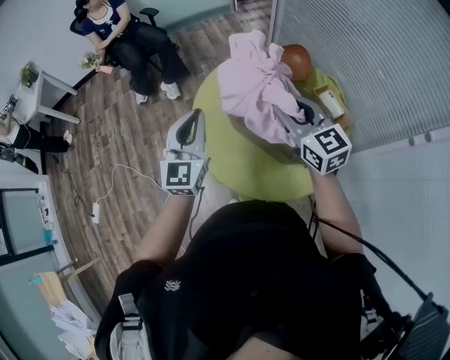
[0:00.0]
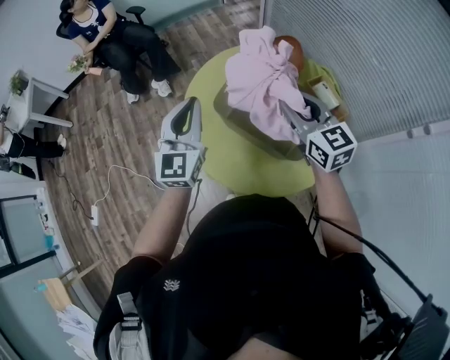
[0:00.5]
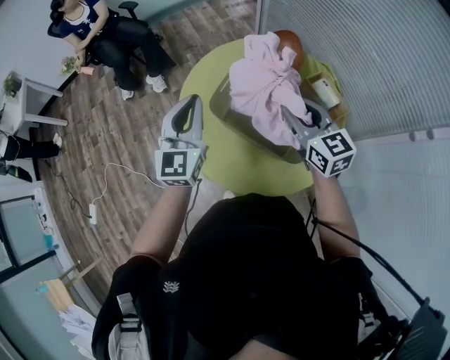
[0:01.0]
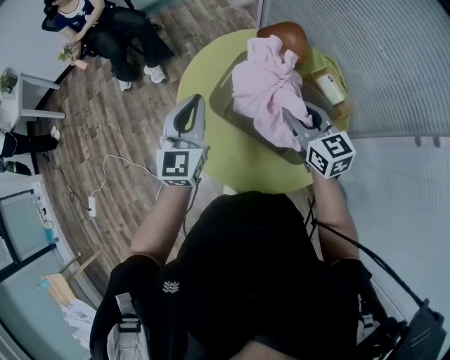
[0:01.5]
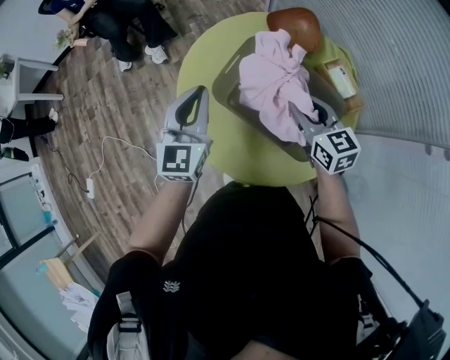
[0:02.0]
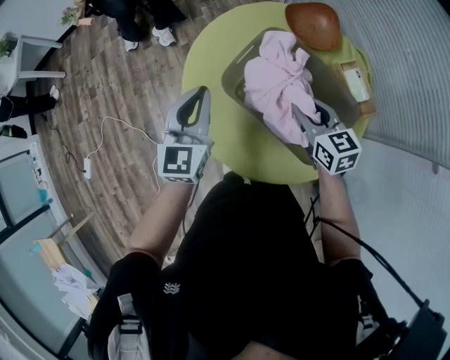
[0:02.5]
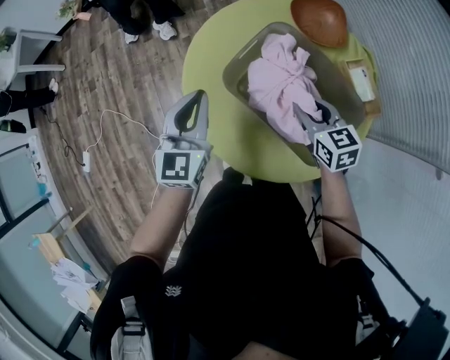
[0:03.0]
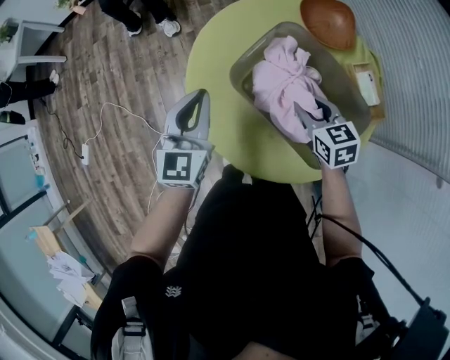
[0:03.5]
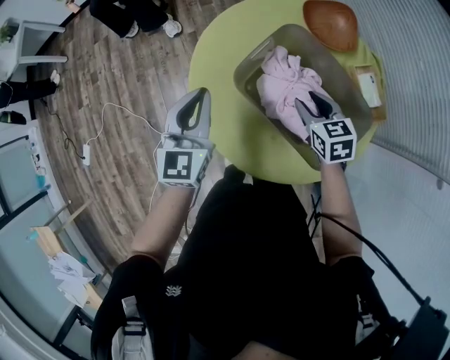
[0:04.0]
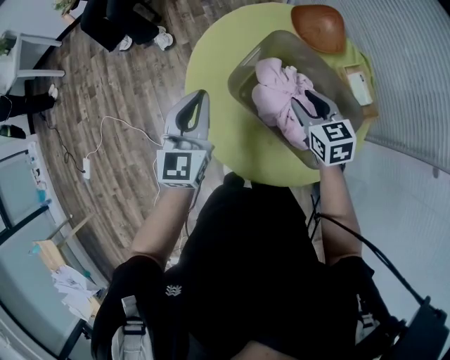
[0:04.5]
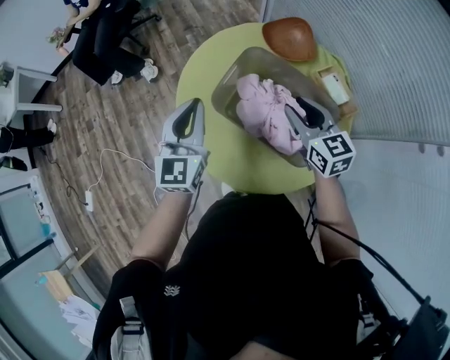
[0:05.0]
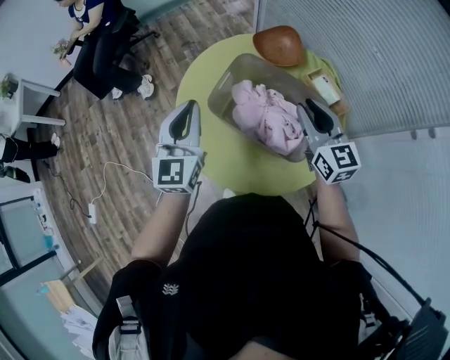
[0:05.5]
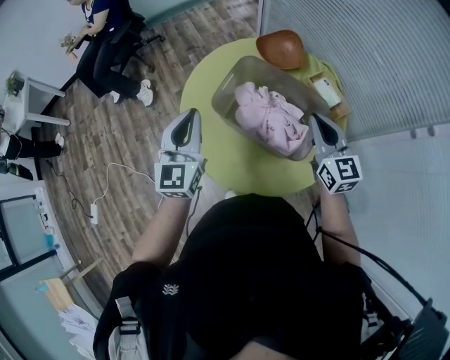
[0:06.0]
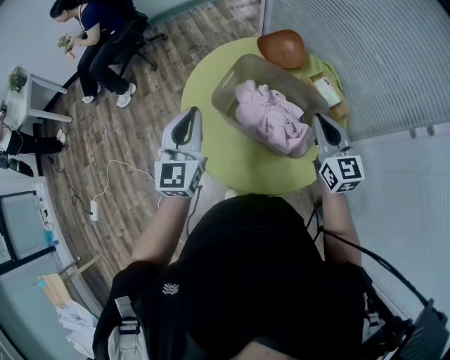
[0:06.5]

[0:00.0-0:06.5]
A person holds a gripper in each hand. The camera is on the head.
0:00.0 to 0:02.0: The left gripper is displaced forward, downward and to the right by about 15 cm. Meanwhile the right gripper is displaced downward and to the right by some 15 cm.
0:02.0 to 0:04.5: The left gripper shifts by some 5 cm; the right gripper shifts approximately 5 cm downward.
0:04.5 to 0:06.5: The right gripper moves upward, backward and to the right, approximately 20 cm, swivels about 30 degrees, and closes up. Meanwhile the left gripper shifts approximately 10 cm upward and backward.

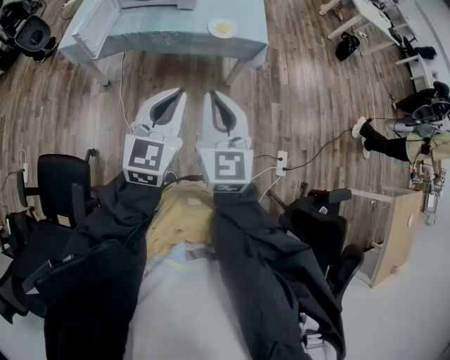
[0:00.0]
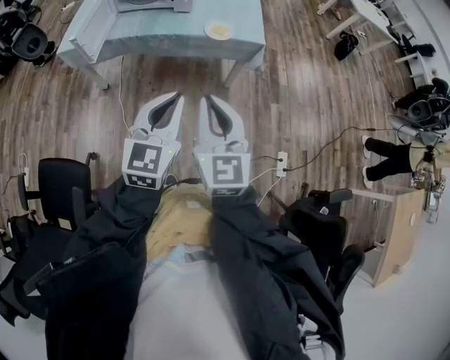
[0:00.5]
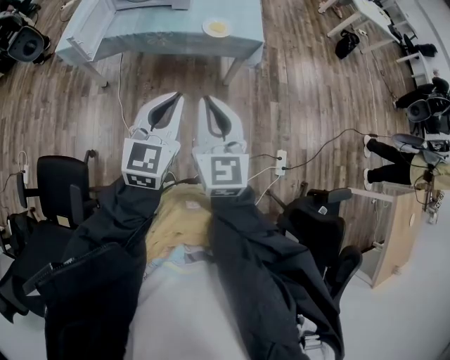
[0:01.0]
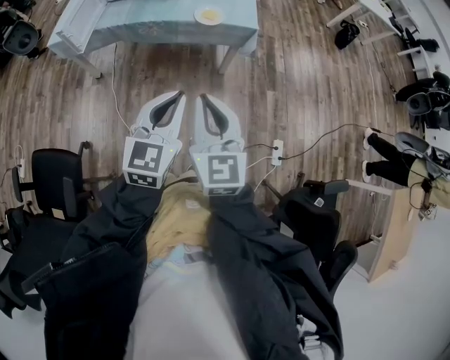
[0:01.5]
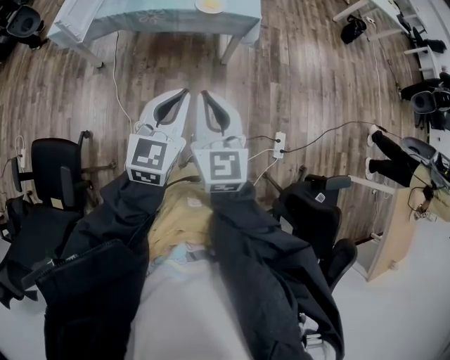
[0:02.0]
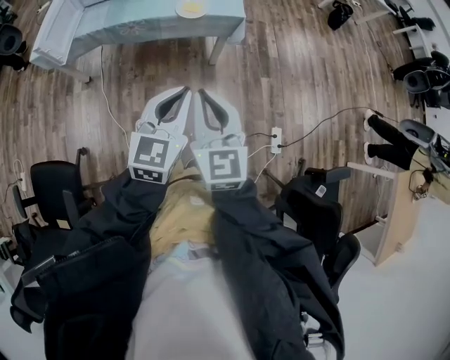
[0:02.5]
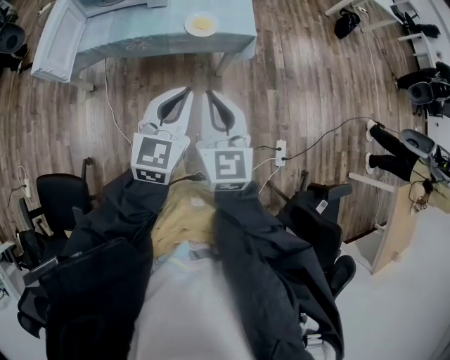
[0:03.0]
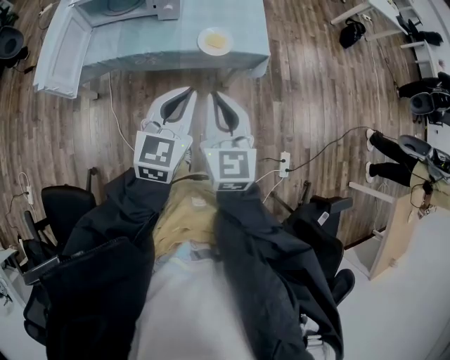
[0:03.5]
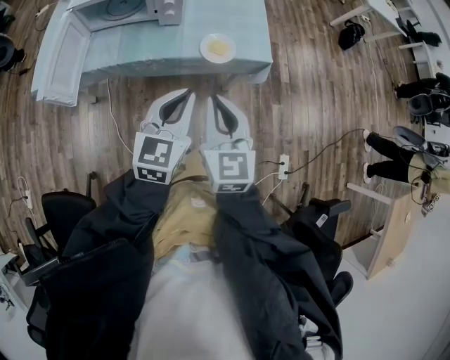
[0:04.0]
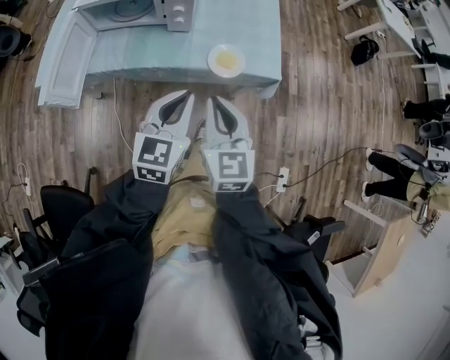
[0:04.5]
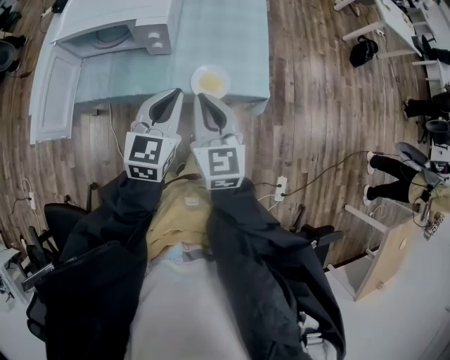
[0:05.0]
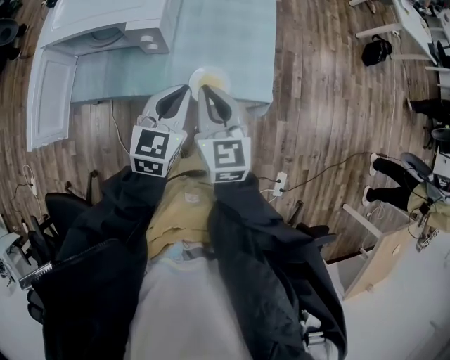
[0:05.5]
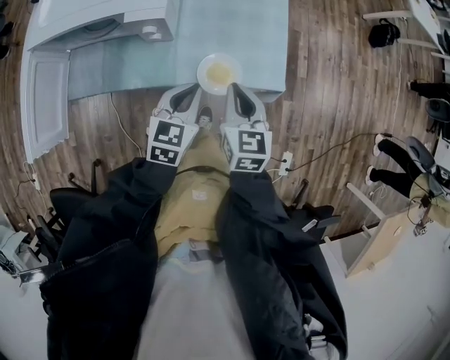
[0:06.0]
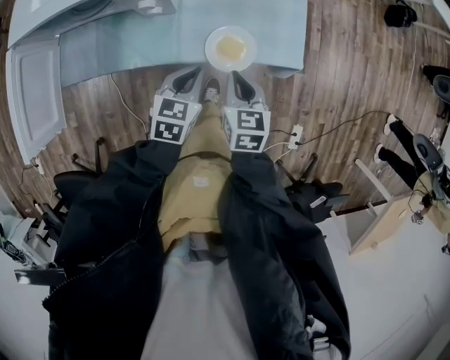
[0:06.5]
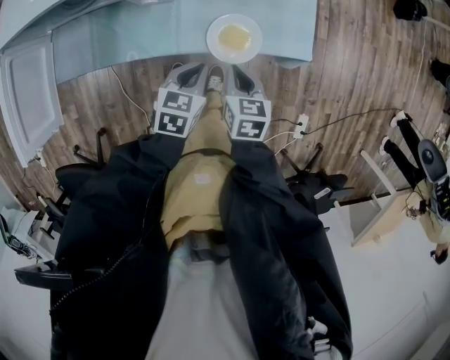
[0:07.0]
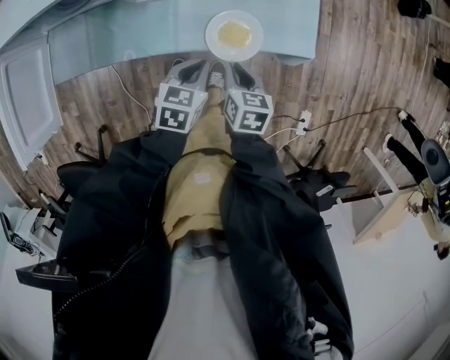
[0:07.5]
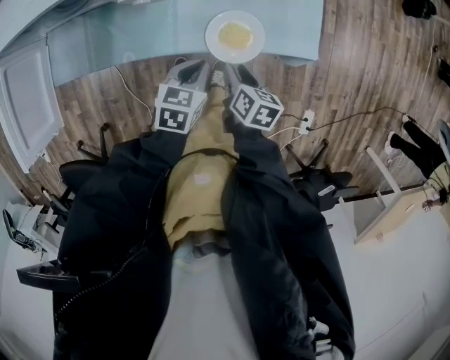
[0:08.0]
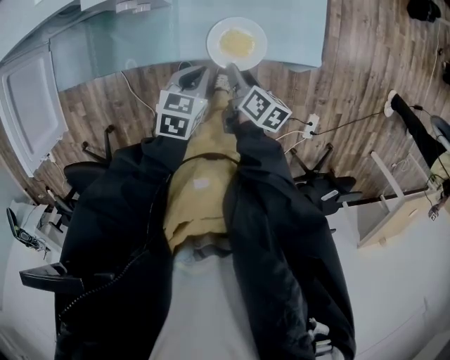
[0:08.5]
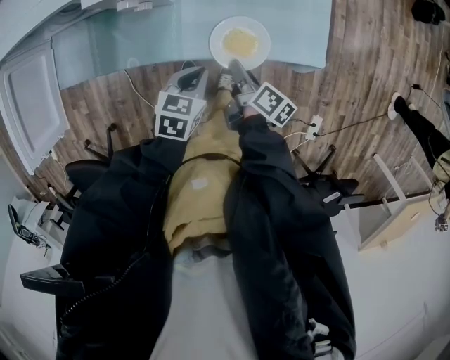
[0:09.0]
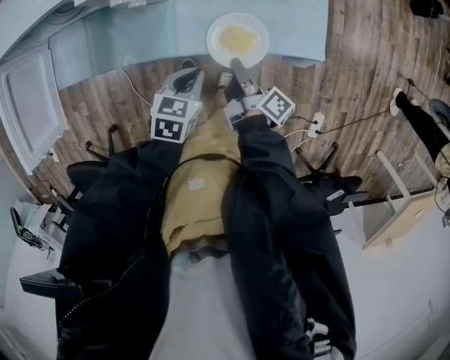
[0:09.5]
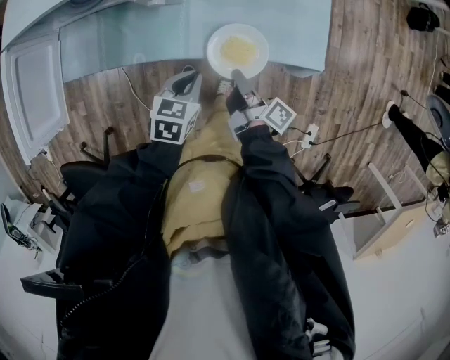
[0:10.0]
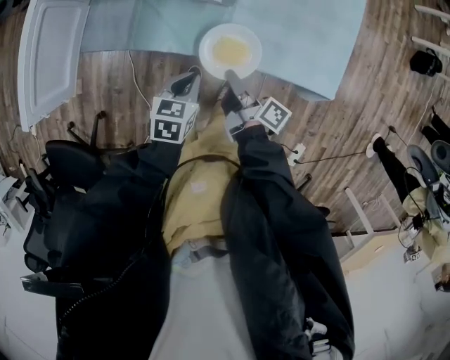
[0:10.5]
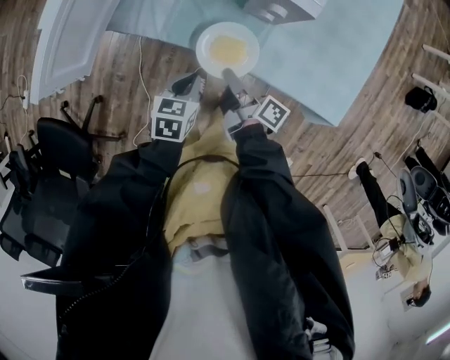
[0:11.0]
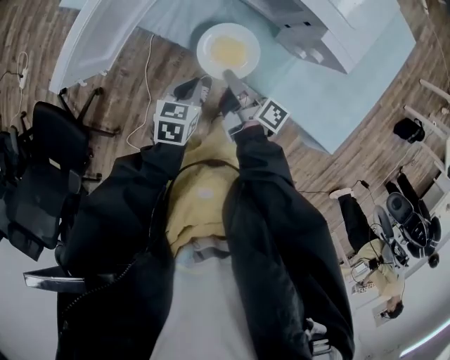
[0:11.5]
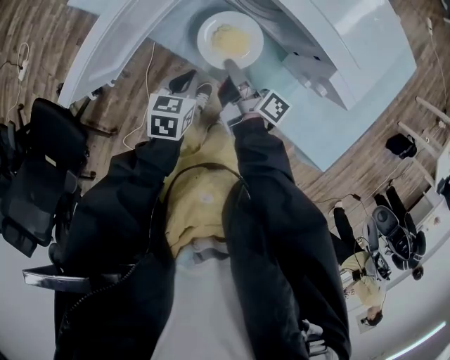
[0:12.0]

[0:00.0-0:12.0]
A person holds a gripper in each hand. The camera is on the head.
0:00.0 to 0:02.0: The two grippers go roughly 10 cm to the right and downward.
0:02.0 to 0:04.0: The left gripper moves forward and to the left, about 30 cm. The right gripper moves forward, about 25 cm.
0:04.0 to 0:06.0: The two grippers go approximately 25 cm forward and downward.
0:06.0 to 0:08.0: Both grippers move downward, approximately 20 cm. The right gripper rotates some 40 degrees, and opens. The left gripper turns by some 20 degrees.
0:08.0 to 0:10.0: The right gripper tips its fingers upward by approximately 30 degrees, and closes.
0:10.0 to 0:12.0: The right gripper moves about 35 cm, and changes its angle by about 40 degrees; the left gripper shifts by about 30 cm, and rotates roughly 40 degrees.

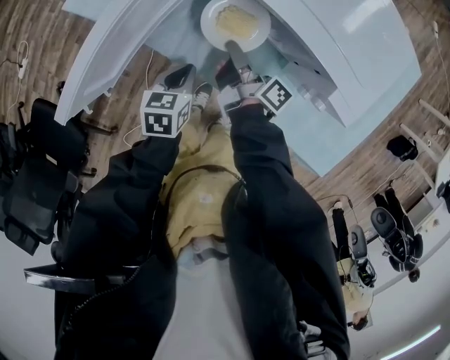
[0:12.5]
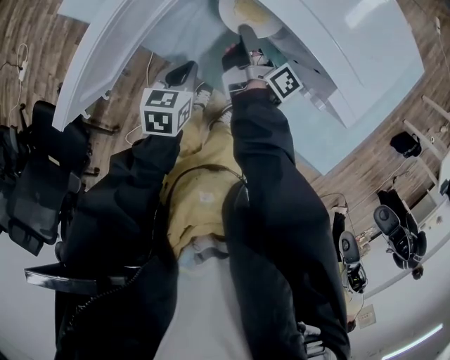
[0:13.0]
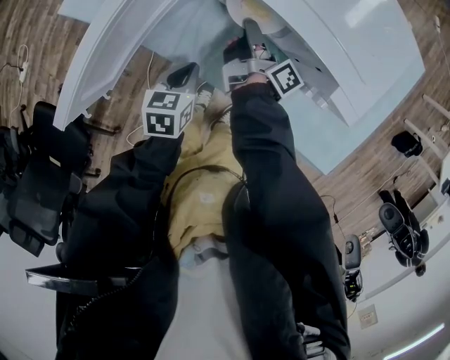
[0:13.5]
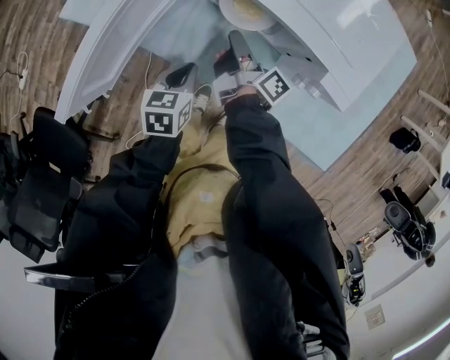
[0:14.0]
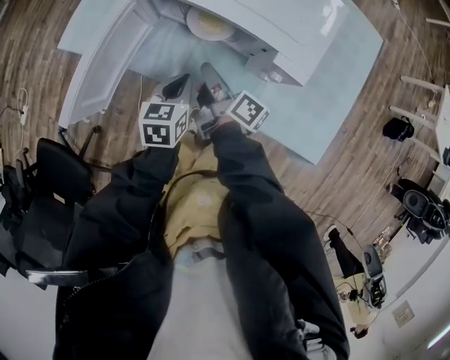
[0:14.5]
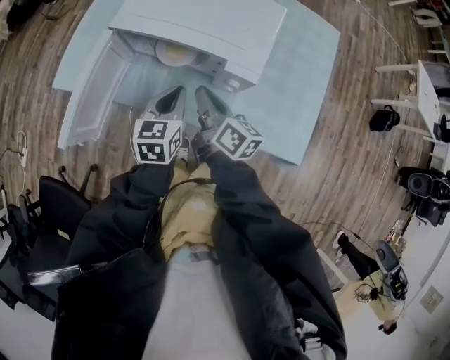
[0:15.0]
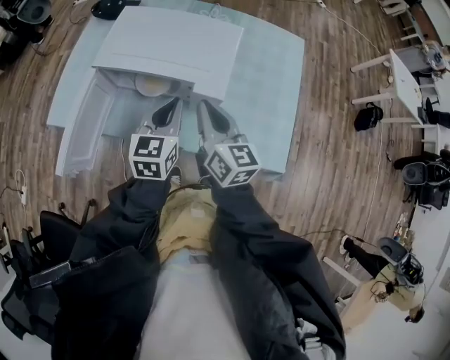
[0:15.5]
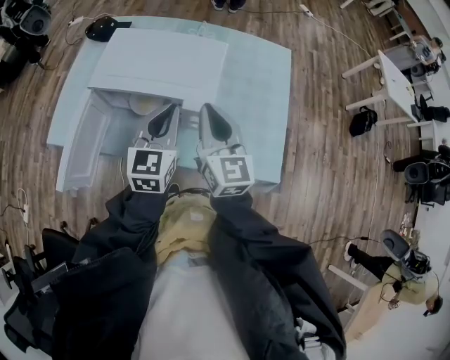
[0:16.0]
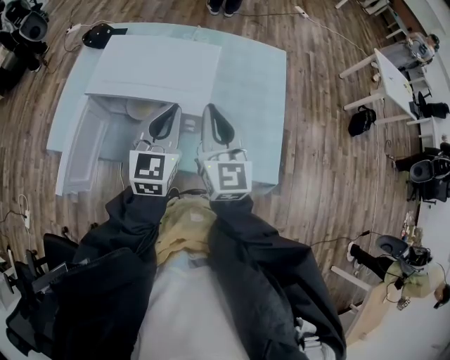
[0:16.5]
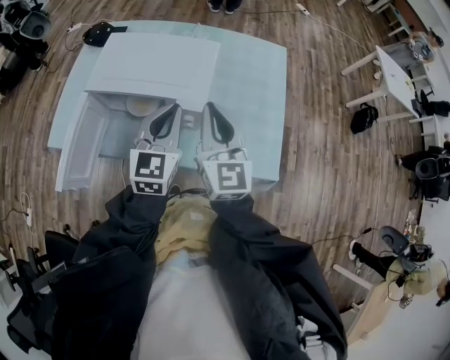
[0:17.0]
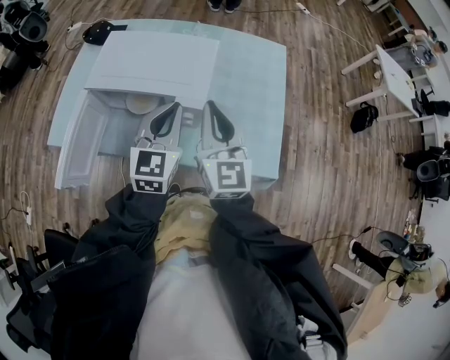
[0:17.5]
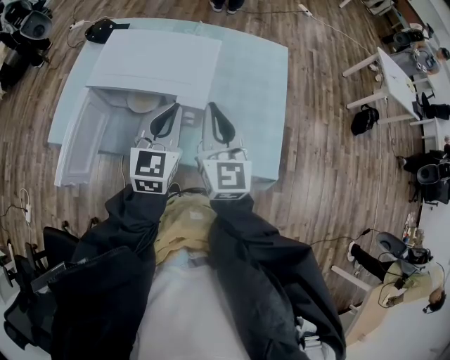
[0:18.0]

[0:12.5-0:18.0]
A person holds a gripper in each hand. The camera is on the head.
0:12.5 to 0:14.5: The left gripper is displaced upward and to the right by about 10 cm. Meanwhile the right gripper goes about 10 cm upward.
0:14.5 to 0:16.0: Both grippers move upward and to the right, some 30 cm. The right gripper rolls counterclockwise, seen from behind, by approximately 70 degrees, while the left gripper turns by some 40 degrees.
0:16.0 to 0:18.0: The grippers move only a little.

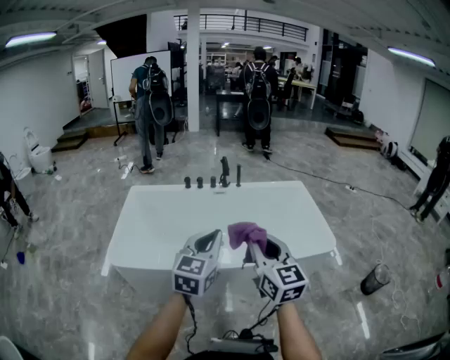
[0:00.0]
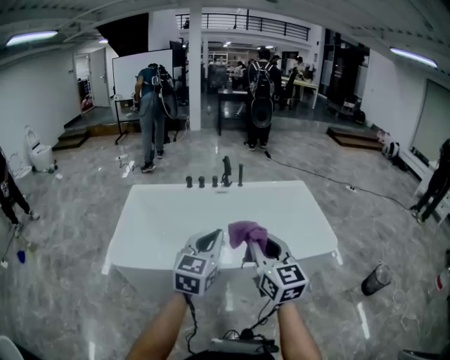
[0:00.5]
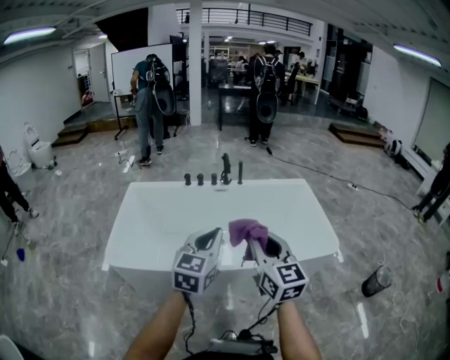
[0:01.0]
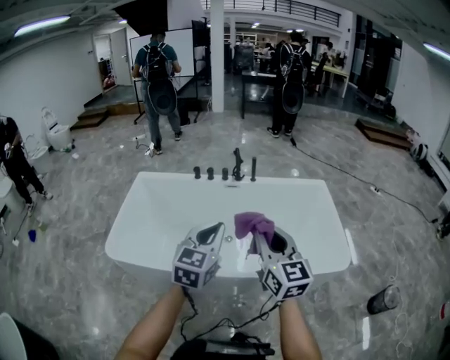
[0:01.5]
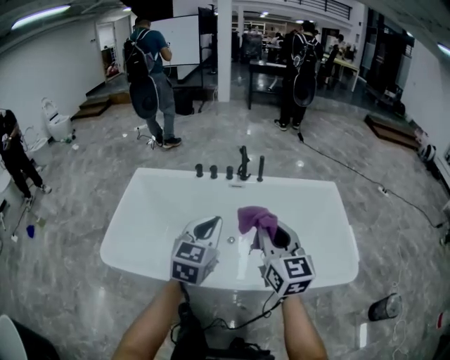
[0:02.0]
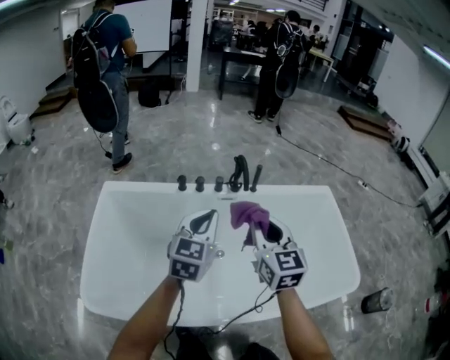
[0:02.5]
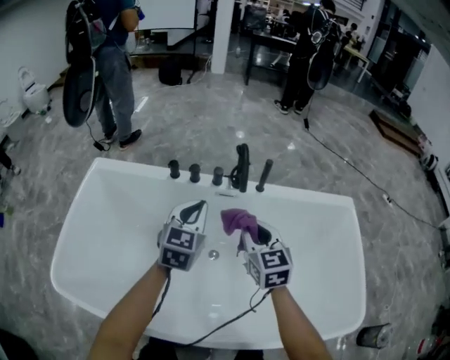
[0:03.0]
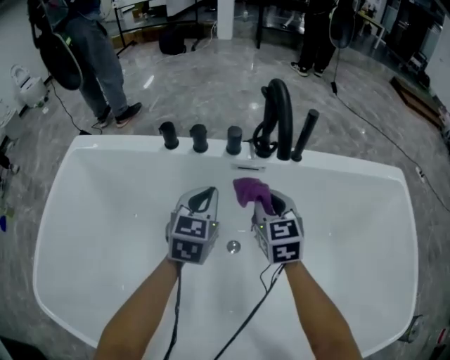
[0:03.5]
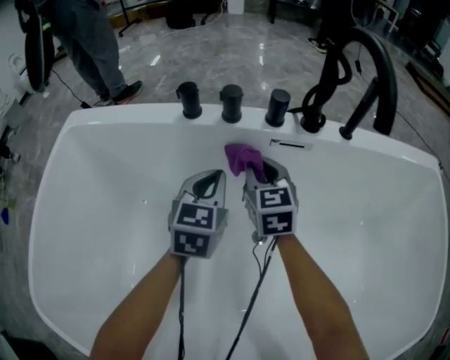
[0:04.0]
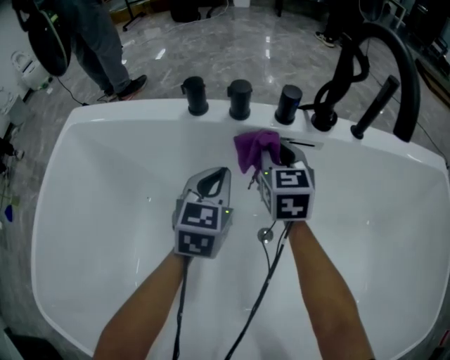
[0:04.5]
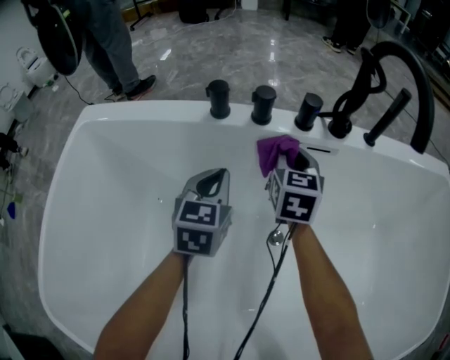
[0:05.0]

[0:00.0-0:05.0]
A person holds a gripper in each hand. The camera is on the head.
0:00.0 to 0:02.5: The pair of grippers is taken forward, approximately 50 cm.
0:02.5 to 0:05.0: Both grippers move downward and forward, some 60 cm. The left gripper rotates roughly 20 degrees.
